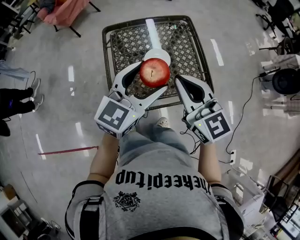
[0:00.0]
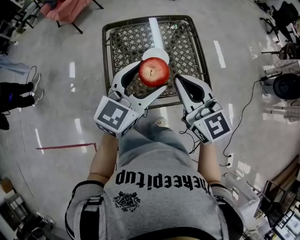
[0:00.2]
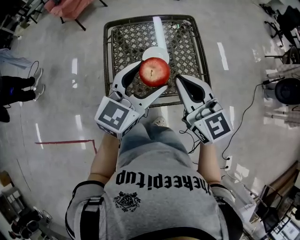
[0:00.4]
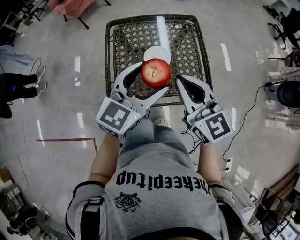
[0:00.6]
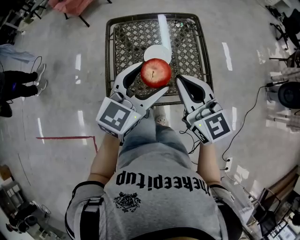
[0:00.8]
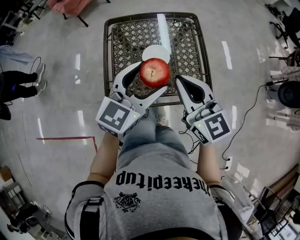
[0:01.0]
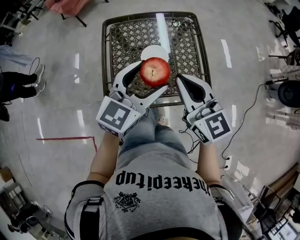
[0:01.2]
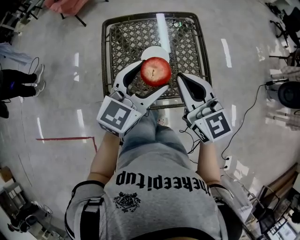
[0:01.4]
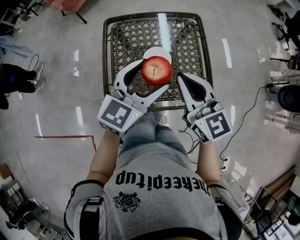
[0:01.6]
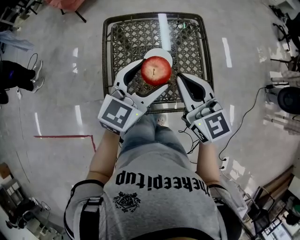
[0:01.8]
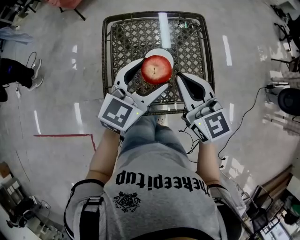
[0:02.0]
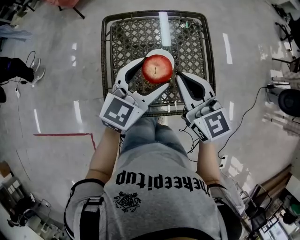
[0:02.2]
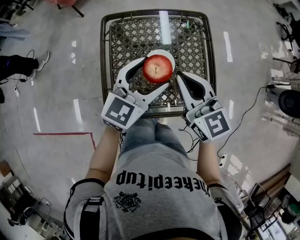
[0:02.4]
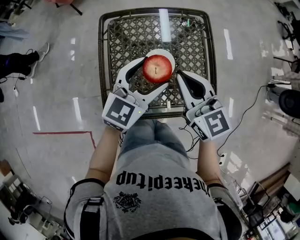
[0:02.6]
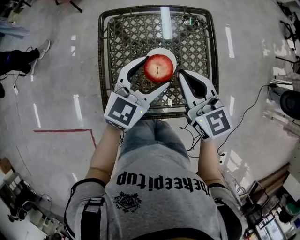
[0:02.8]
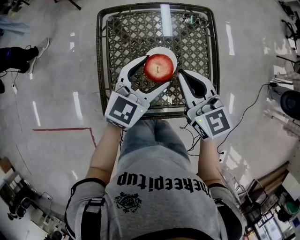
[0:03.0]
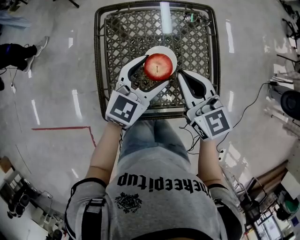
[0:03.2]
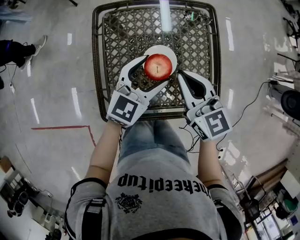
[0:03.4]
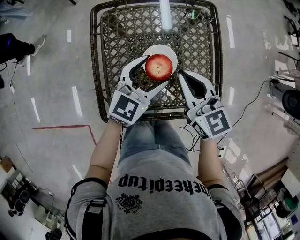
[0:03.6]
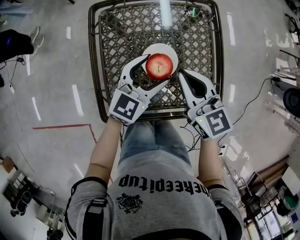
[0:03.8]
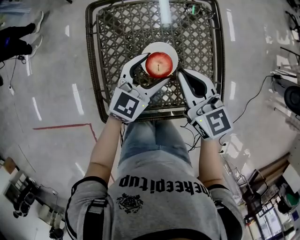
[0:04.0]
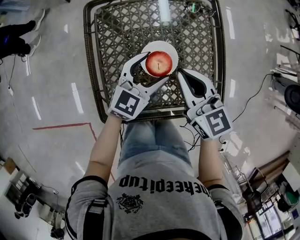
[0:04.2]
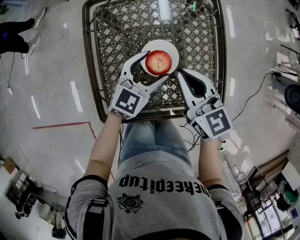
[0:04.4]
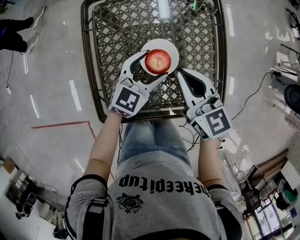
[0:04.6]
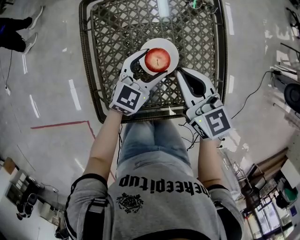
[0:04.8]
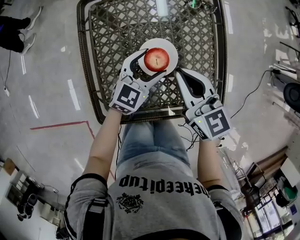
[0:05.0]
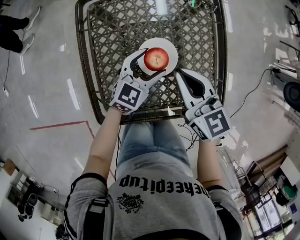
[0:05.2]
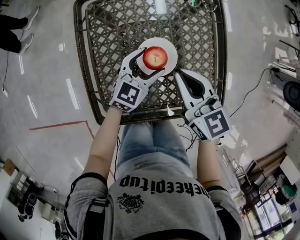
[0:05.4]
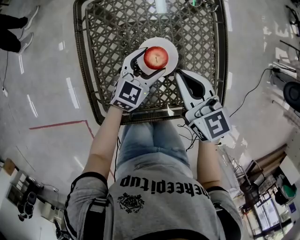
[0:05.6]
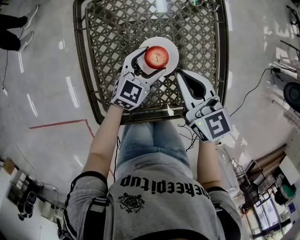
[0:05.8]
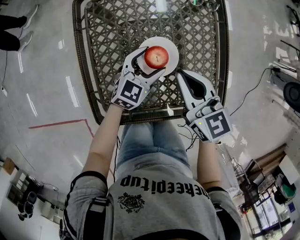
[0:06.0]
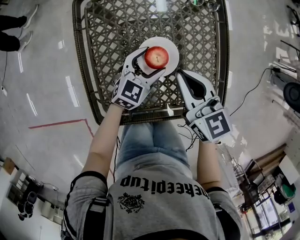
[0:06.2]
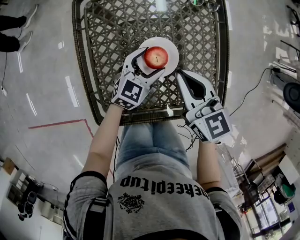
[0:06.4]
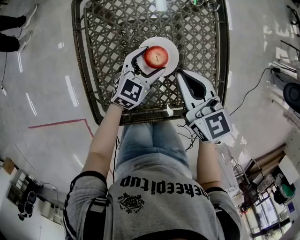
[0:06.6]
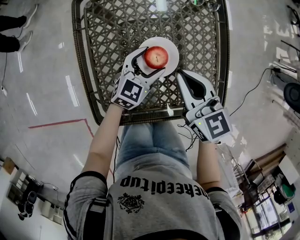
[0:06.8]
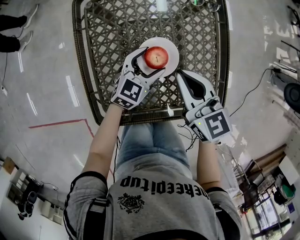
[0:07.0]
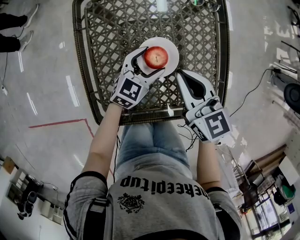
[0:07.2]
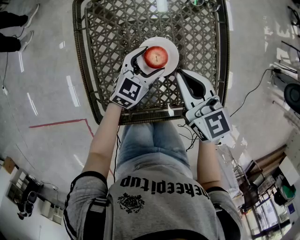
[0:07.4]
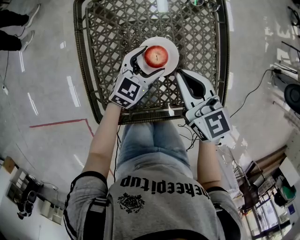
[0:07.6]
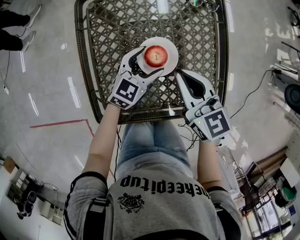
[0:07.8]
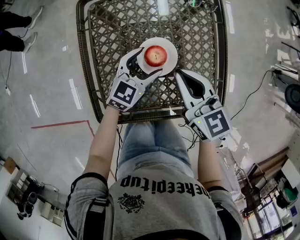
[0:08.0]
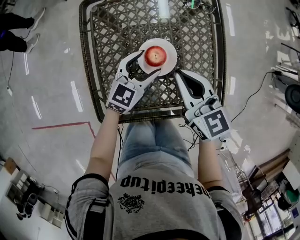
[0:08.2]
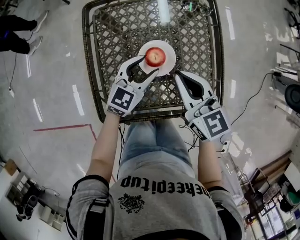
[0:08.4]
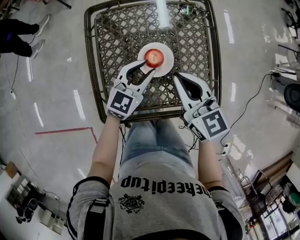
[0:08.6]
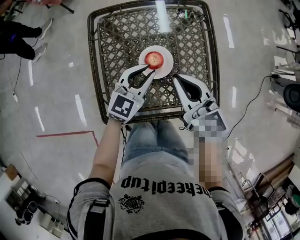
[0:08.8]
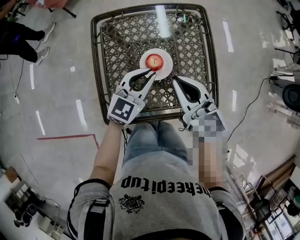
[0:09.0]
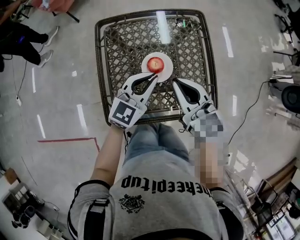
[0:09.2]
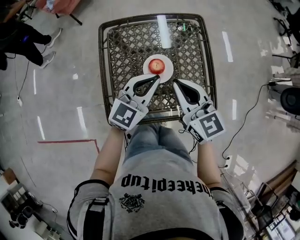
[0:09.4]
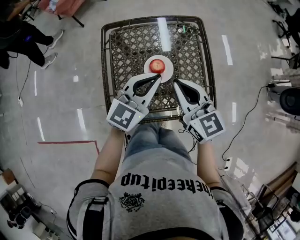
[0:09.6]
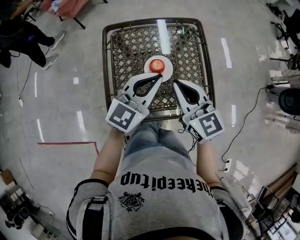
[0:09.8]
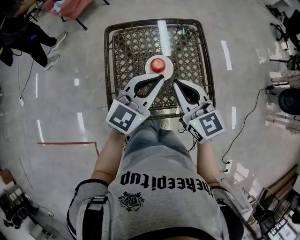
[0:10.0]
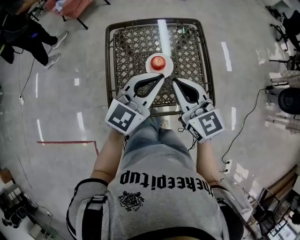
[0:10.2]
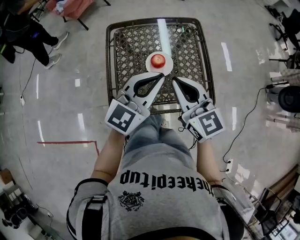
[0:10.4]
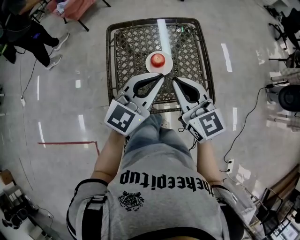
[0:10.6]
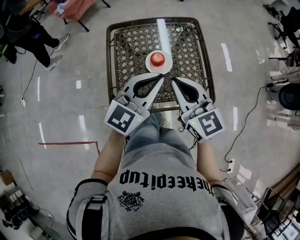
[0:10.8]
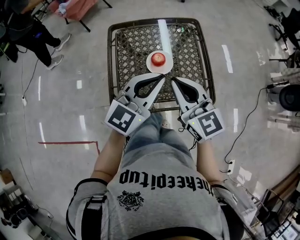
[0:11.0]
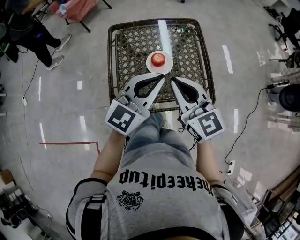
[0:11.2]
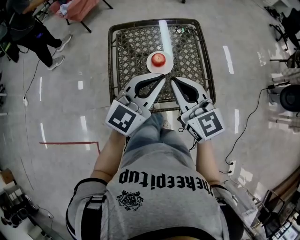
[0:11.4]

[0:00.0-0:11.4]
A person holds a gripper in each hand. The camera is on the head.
0.0 to 1.4 s: The right gripper shifts by roughly 5 cm. Meanwhile the left gripper moves roughly 5 cm.
1.4 to 2.8 s: The two grippers go about 10 cm forward and downward.
2.8 to 4.2 s: The right gripper goes about 10 cm downward; the left gripper heads downward, covering some 15 cm.
4.2 to 5.6 s: The left gripper is displaced downward by approximately 10 cm.
5.6 to 7.2 s: The grippers make only small movements.
7.2 to 8.6 s: The right gripper heads upward, covering some 5 cm, while the left gripper moves upward, some 10 cm, and closes its fingers.
8.6 to 10.0 s: The left gripper goes roughly 20 cm upward and backward. The right gripper shifts about 10 cm upward and backward.
10.0 to 11.4 s: The right gripper ends up roughly 5 cm from where it was; the left gripper goes some 5 cm backward.

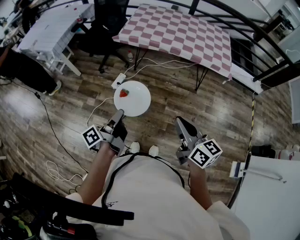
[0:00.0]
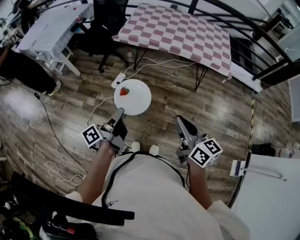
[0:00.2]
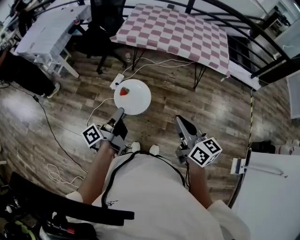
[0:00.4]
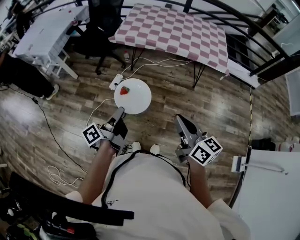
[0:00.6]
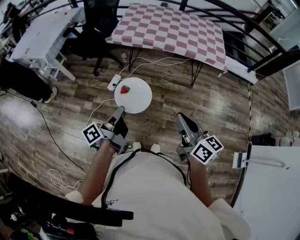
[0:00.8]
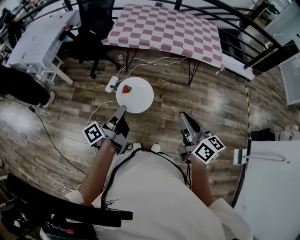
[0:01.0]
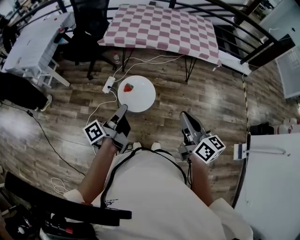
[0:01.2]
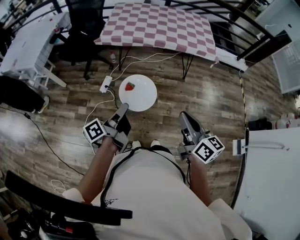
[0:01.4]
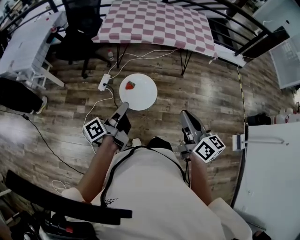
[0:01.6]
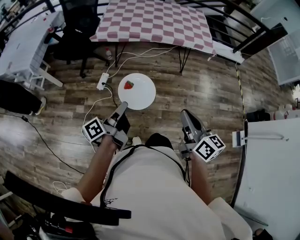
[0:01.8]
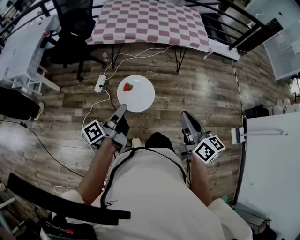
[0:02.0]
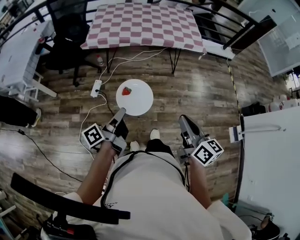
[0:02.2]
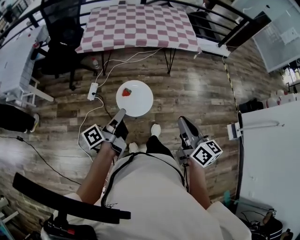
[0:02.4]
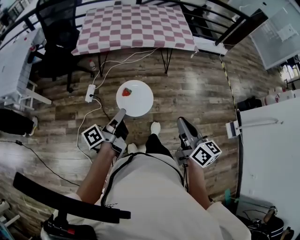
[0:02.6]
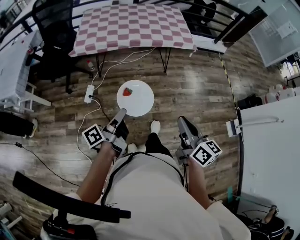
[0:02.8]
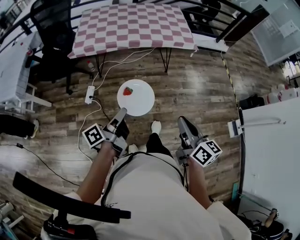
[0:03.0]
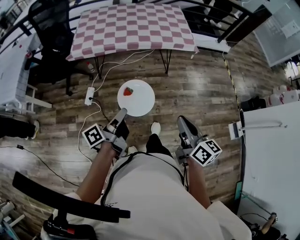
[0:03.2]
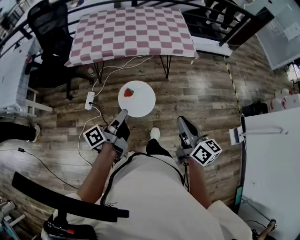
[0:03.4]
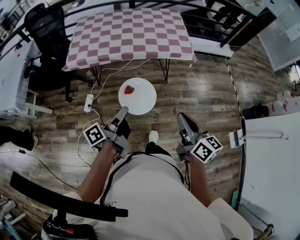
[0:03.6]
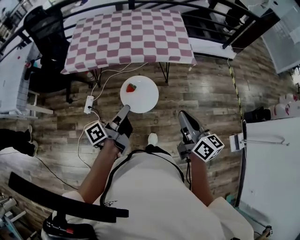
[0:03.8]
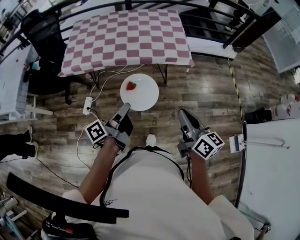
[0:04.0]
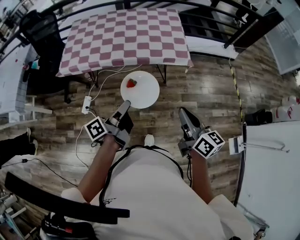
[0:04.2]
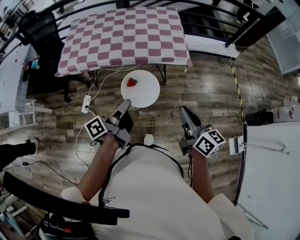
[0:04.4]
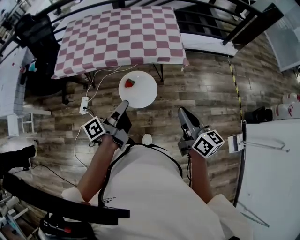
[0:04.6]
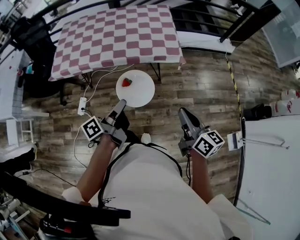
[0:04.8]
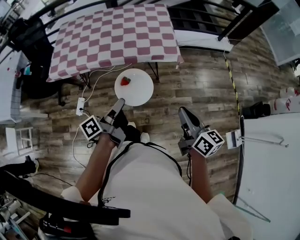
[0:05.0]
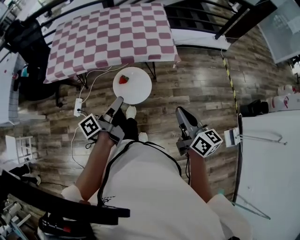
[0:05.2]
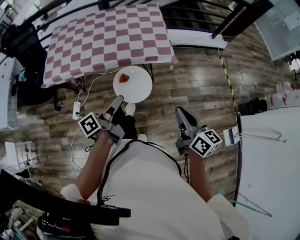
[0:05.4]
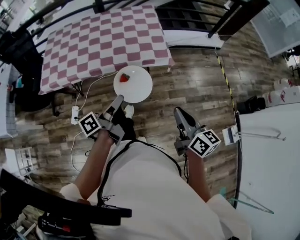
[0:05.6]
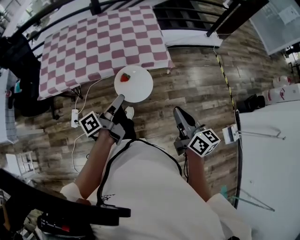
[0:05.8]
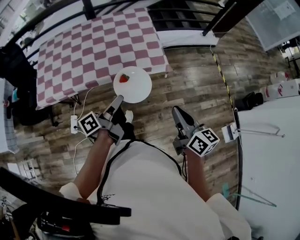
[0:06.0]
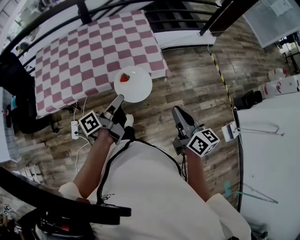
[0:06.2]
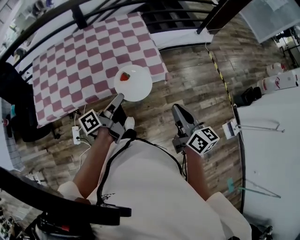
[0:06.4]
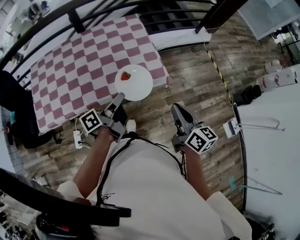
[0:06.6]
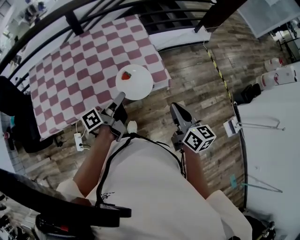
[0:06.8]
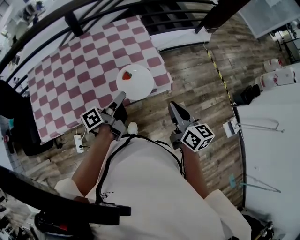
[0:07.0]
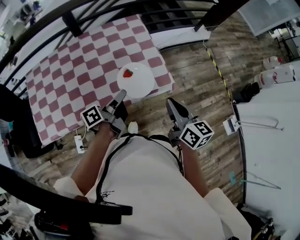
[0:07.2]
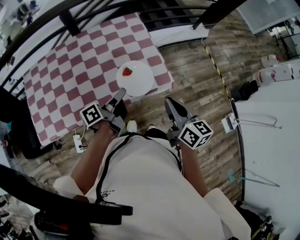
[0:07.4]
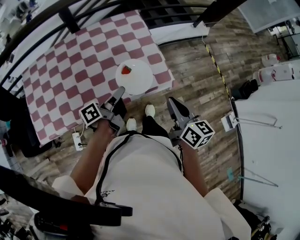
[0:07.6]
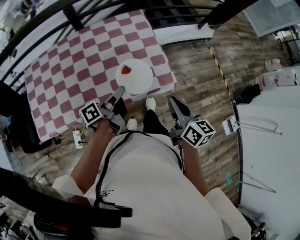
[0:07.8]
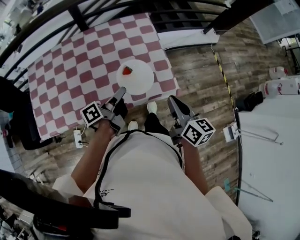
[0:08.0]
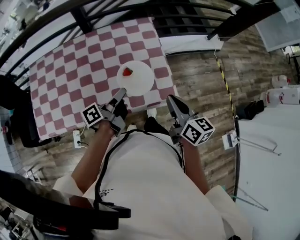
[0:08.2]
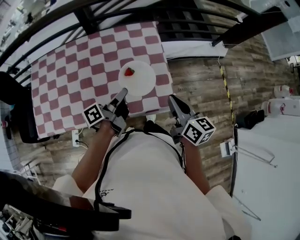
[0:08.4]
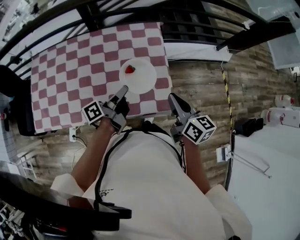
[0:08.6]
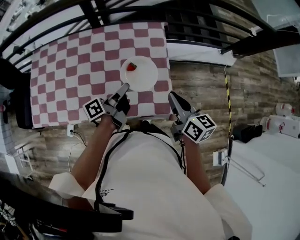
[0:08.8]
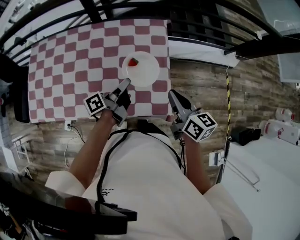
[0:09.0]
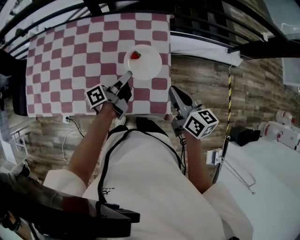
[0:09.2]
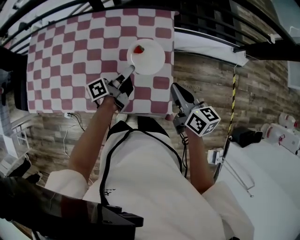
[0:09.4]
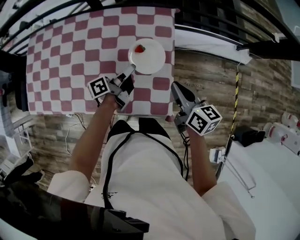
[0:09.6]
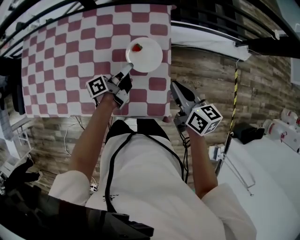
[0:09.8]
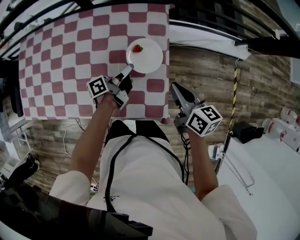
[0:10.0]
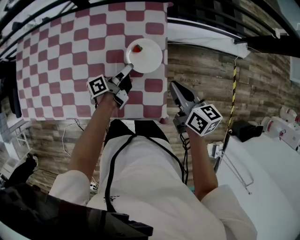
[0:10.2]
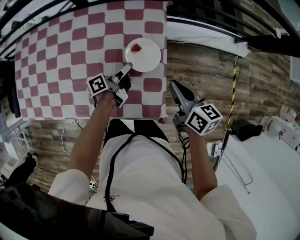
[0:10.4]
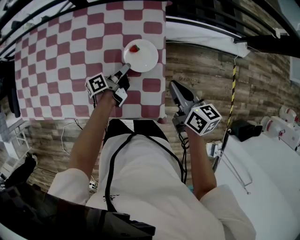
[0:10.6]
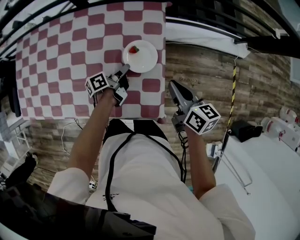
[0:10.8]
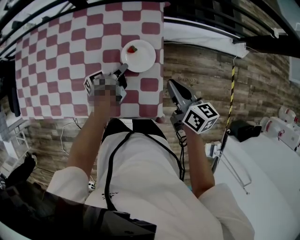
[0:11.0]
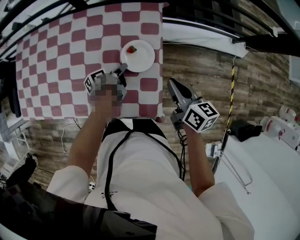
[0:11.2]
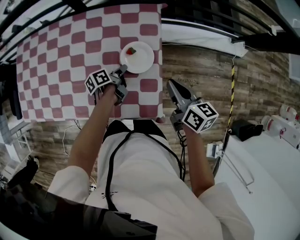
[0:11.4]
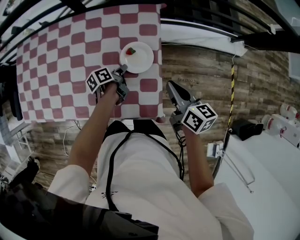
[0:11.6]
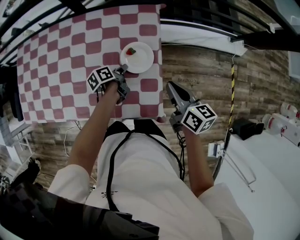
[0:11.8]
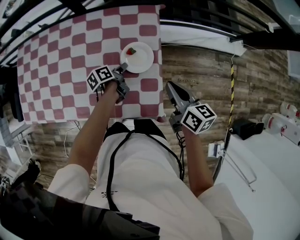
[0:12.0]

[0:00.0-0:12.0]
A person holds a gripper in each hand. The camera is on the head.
1.6 to 3.0 s: The right gripper moves approximately 5 cm.
3.0 to 4.4 s: The right gripper shifts by some 35 cm.
4.4 to 6.0 s: The right gripper changes place by about 10 cm.
6.0 to 7.6 s: The right gripper changes place by about 25 cm.
7.6 to 9.0 s: The right gripper ends up roughly 25 cm from where it was, and swivels about 20 degrees.
9.0 to 10.4 s: The right gripper shifts by some 15 cm.

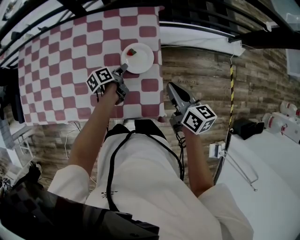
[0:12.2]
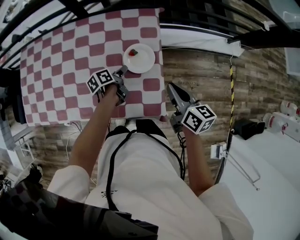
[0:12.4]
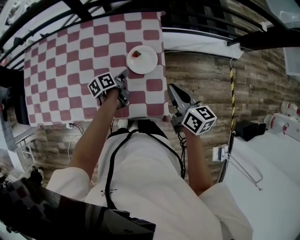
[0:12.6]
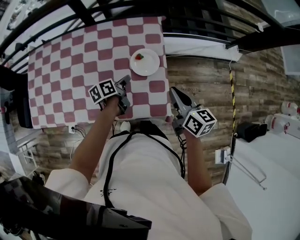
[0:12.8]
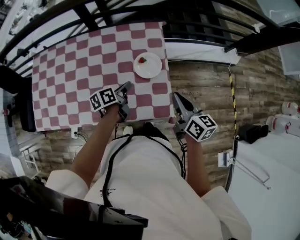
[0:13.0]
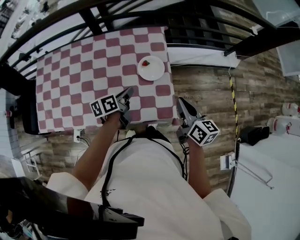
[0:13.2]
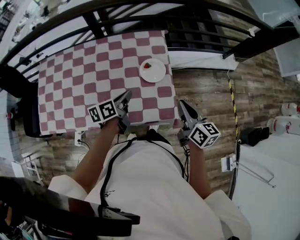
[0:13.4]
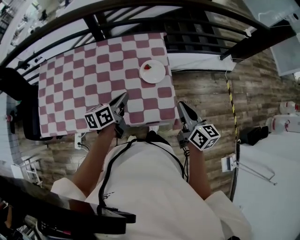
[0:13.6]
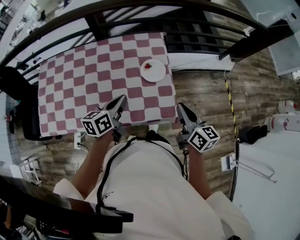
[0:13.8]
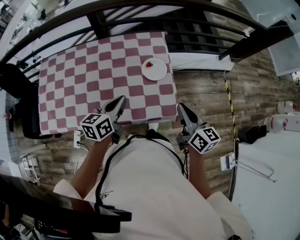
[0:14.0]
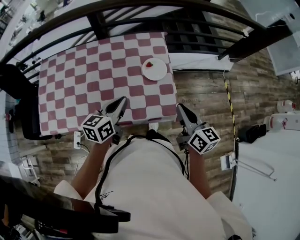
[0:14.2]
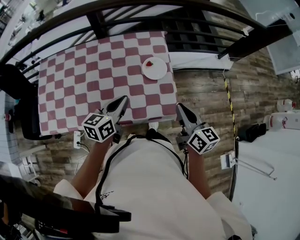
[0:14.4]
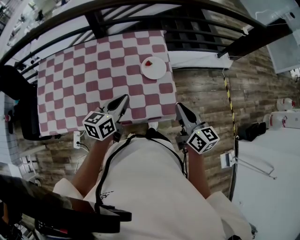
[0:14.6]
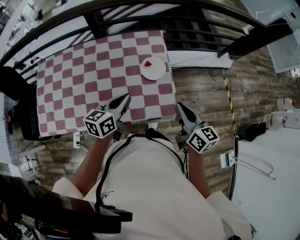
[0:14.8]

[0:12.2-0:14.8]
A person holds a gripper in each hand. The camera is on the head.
12.2 to 13.4 s: The right gripper moves about 15 cm.
13.4 to 14.8 s: The right gripper shifts by approximately 5 cm.
